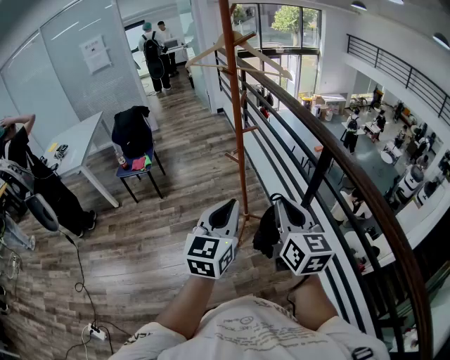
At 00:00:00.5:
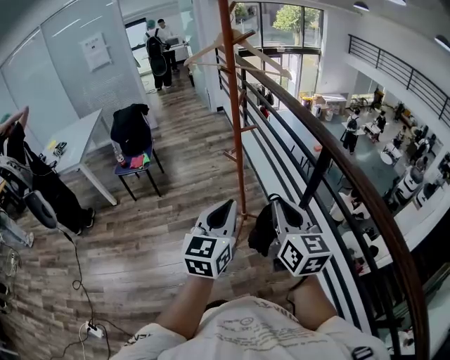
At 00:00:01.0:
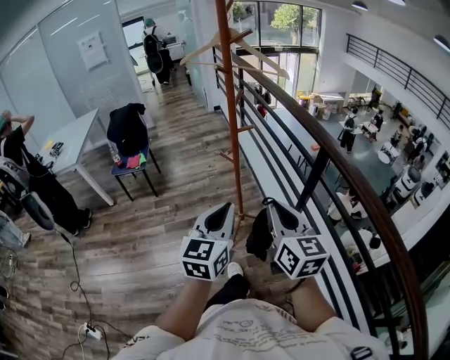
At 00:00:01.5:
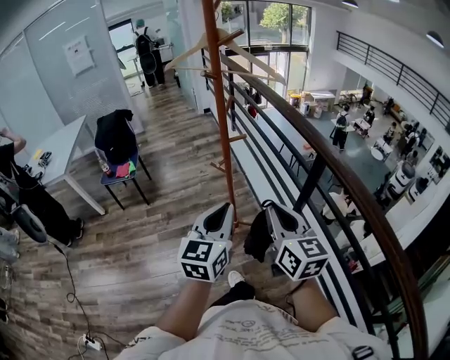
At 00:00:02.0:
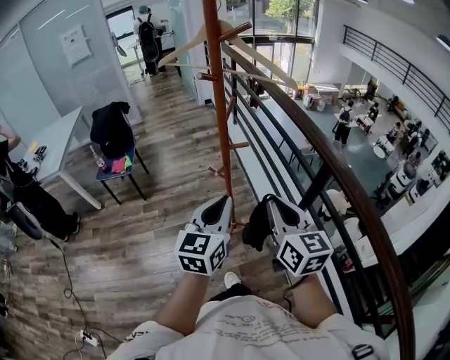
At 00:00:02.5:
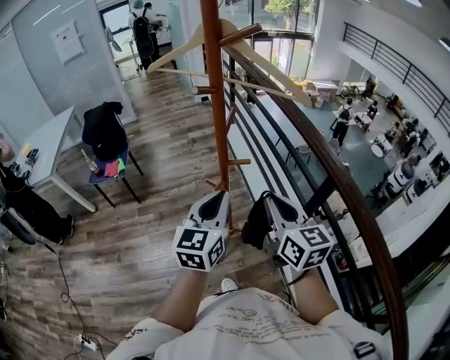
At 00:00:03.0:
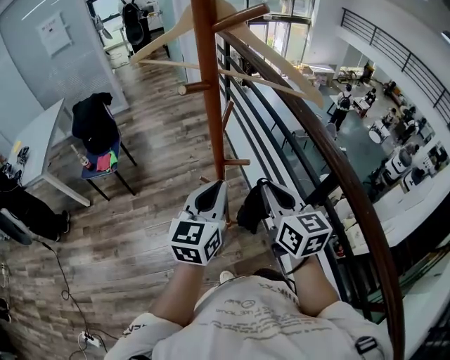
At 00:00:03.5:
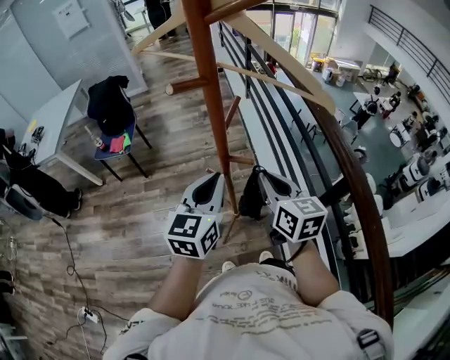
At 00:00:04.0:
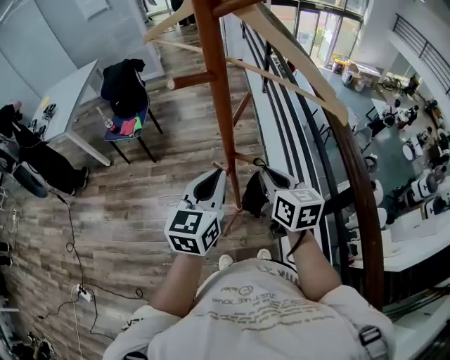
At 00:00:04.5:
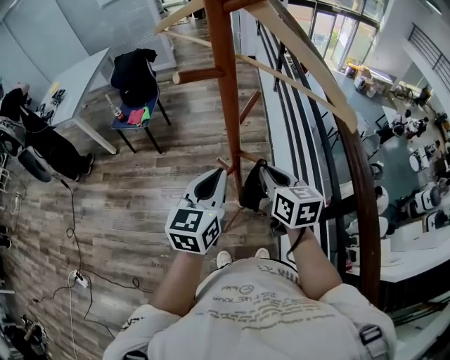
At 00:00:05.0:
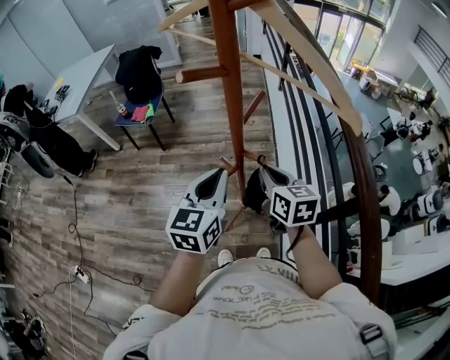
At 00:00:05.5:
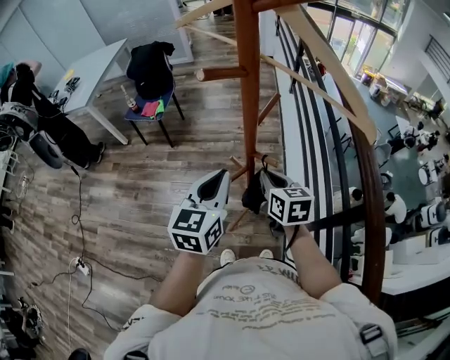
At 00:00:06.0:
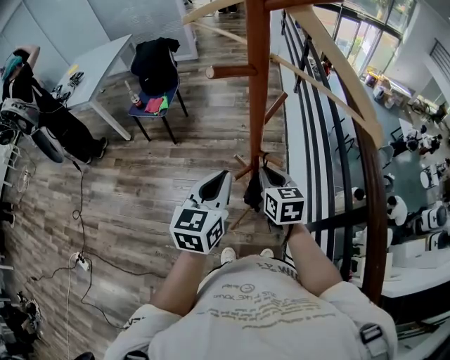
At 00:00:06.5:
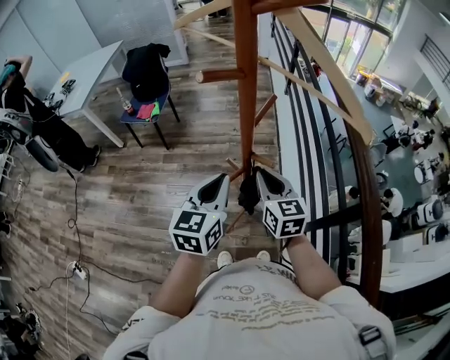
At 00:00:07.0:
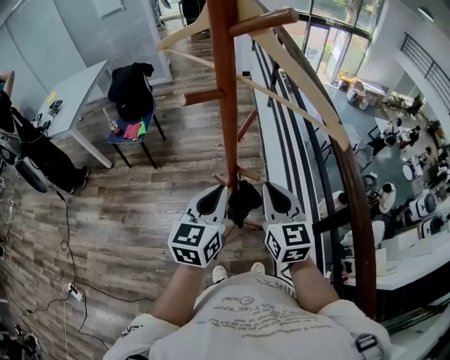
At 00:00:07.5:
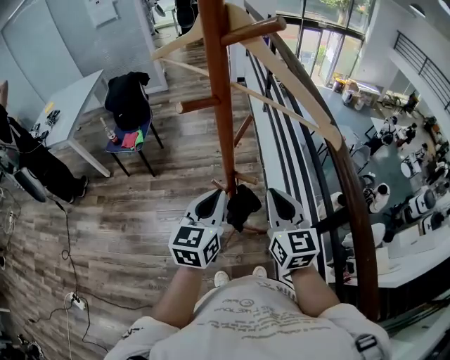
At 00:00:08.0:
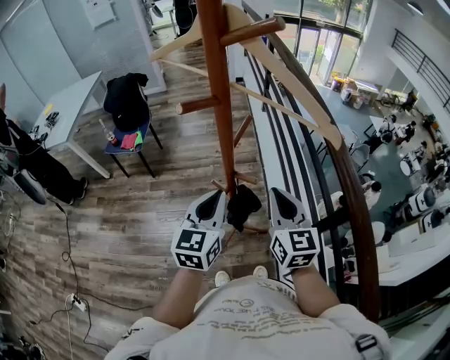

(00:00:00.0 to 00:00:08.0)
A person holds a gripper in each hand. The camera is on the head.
00:00:00.0 - 00:00:02.0: Both grippers move forward, roughly 20 cm.
00:00:02.0 - 00:00:04.0: The grippers both shift forward by approximately 20 cm. The right gripper swivels some 20 degrees.
00:00:04.0 - 00:00:06.0: The right gripper moves downward and to the left, some 10 cm.
00:00:06.0 - 00:00:08.0: The right gripper travels upward and to the right by some 15 cm, and changes its angle by about 20 degrees.

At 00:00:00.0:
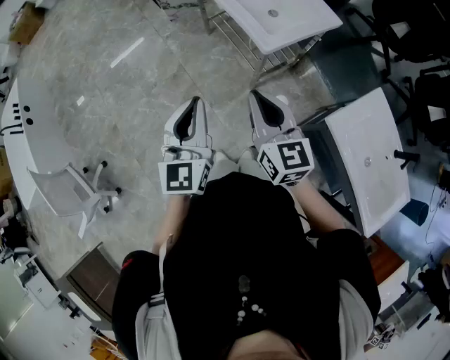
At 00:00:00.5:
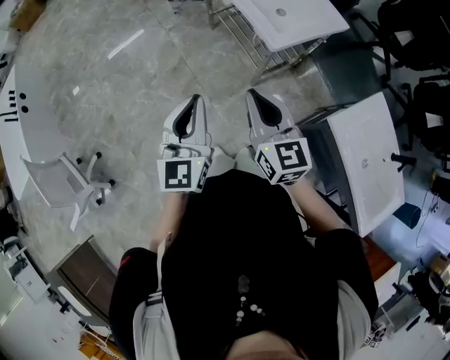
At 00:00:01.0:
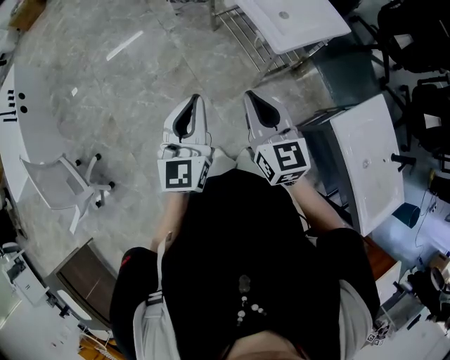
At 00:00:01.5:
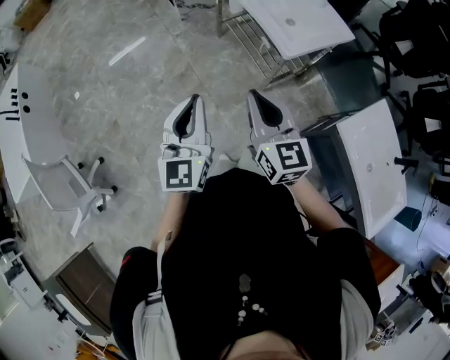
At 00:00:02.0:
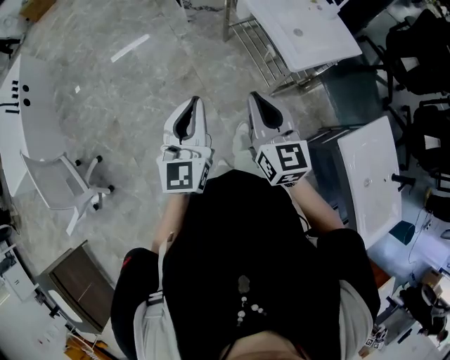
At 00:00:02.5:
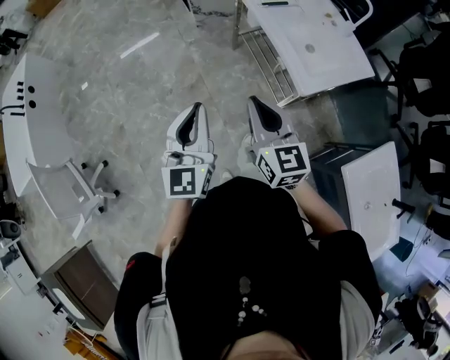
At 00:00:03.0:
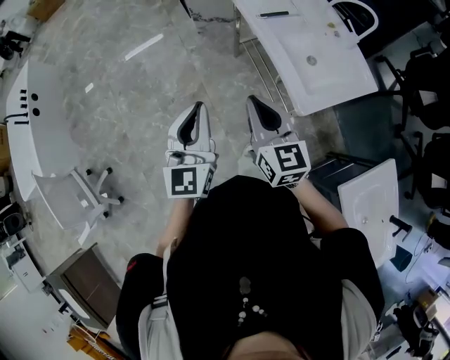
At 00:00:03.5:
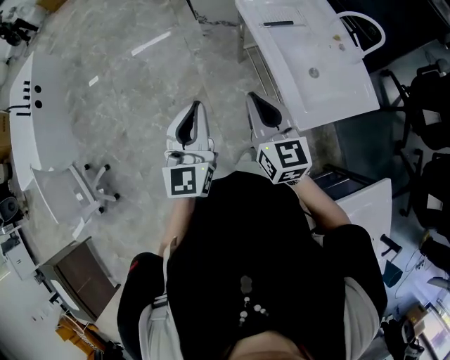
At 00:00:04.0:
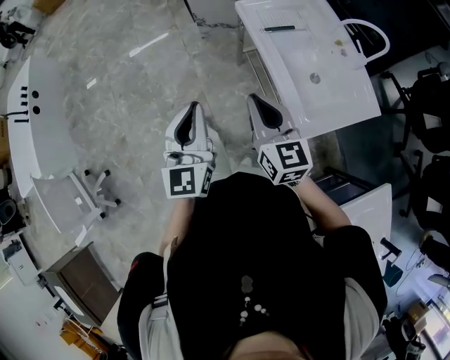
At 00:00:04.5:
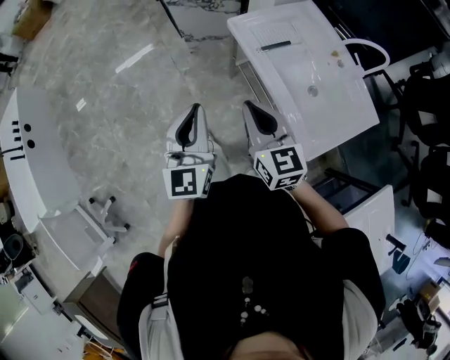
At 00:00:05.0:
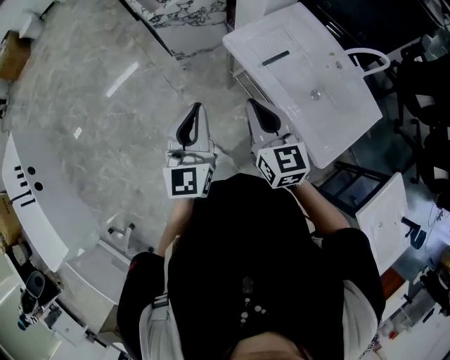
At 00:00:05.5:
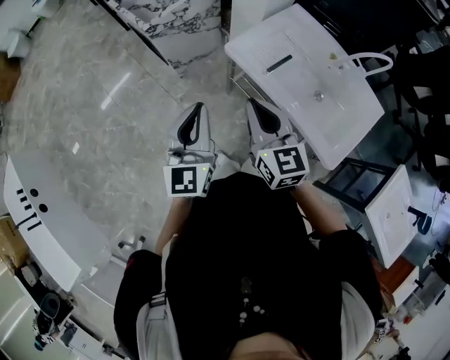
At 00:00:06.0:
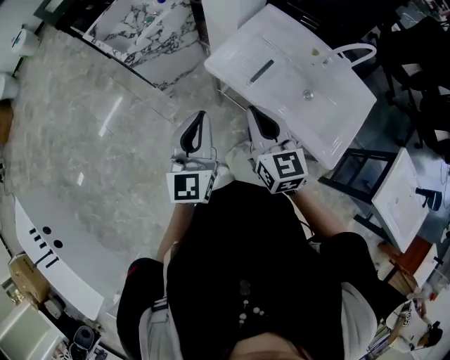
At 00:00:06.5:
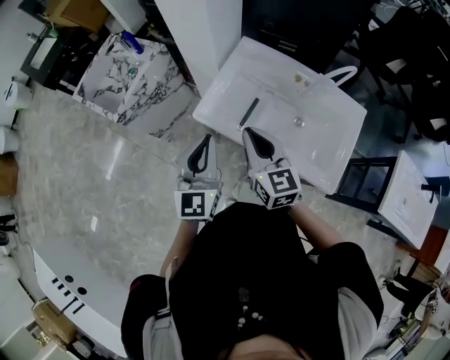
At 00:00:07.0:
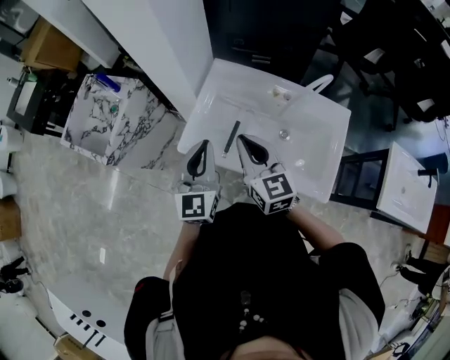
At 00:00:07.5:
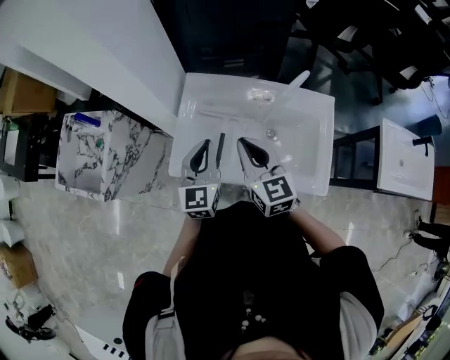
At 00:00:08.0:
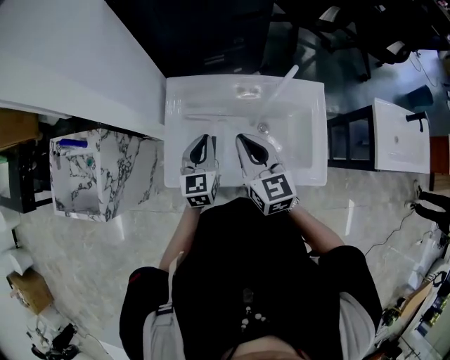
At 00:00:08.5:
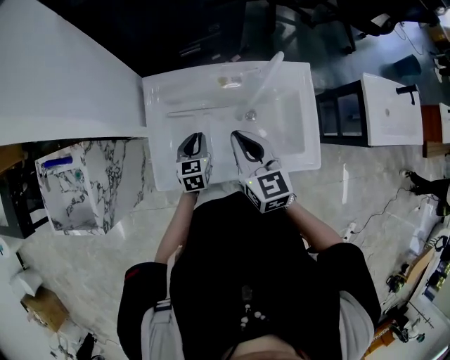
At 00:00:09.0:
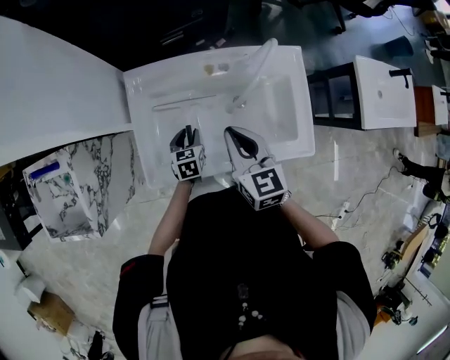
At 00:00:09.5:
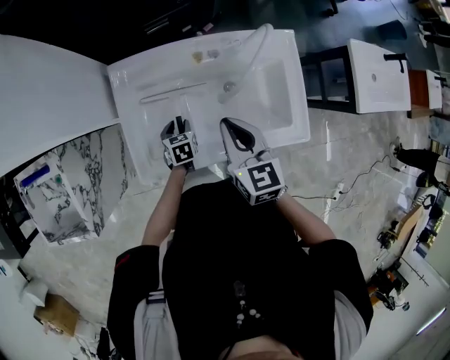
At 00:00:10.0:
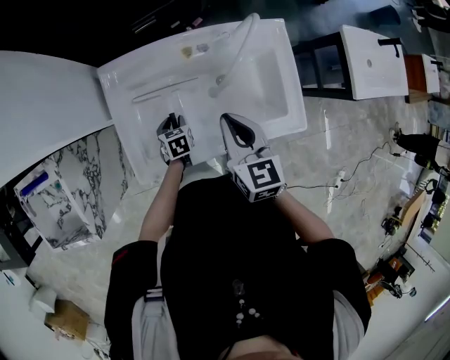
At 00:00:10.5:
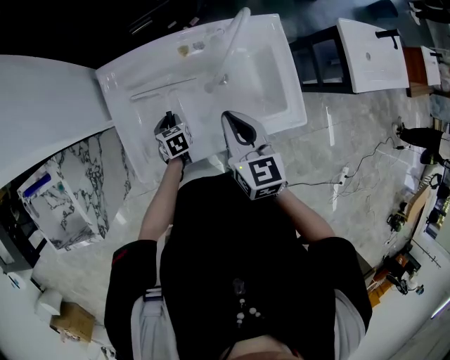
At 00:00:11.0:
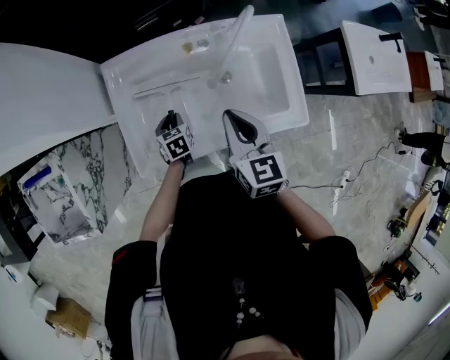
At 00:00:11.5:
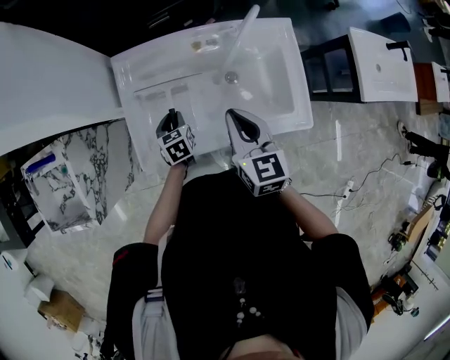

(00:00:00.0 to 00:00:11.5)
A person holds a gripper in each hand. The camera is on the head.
00:00:00.0 - 00:00:02.0: Both grippers travel together to the left, approximately 15 cm.
00:00:02.0 - 00:00:04.0: The two grippers go some 25 cm forward.
00:00:04.0 - 00:00:06.0: The right gripper moves some 25 cm, and rotates roughly 30 degrees. Meanwhile the left gripper changes place by roughly 30 cm, and swivels approximately 30 degrees.
00:00:06.0 - 00:00:07.5: The right gripper changes place by approximately 25 cm, and changes its angle by about 30 degrees. Meanwhile the left gripper shifts by roughly 30 cm, and turns by approximately 30 degrees.
00:00:07.5 - 00:00:09.5: The left gripper heads downward, covering about 30 cm, tilts its fingers approximately 50 degrees downward, and opens; the right gripper is displaced downward and to the right by approximately 10 cm, and rotates roughly 30 degrees.
00:00:09.5 - 00:00:11.5: The left gripper moves upward, about 5 cm.

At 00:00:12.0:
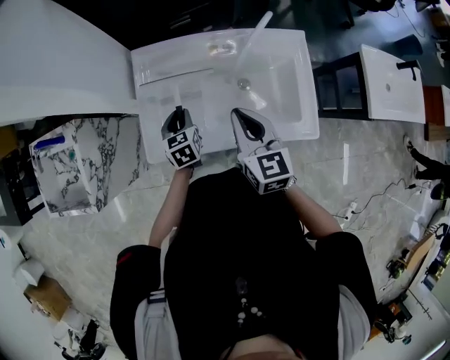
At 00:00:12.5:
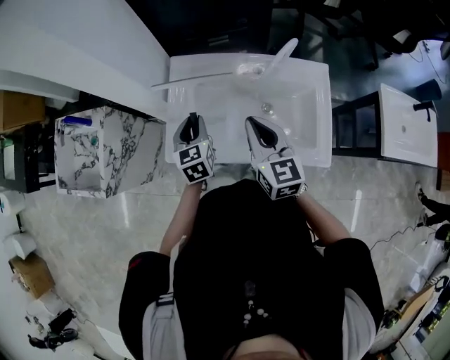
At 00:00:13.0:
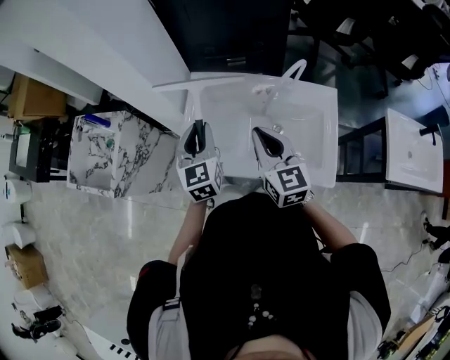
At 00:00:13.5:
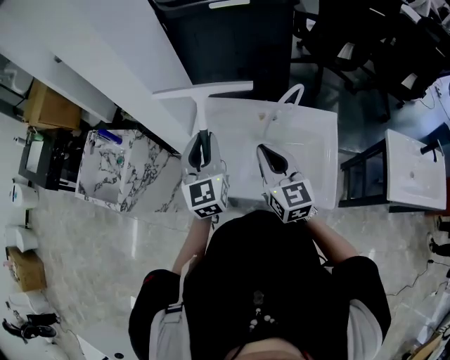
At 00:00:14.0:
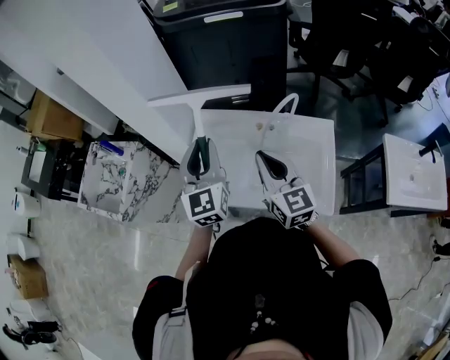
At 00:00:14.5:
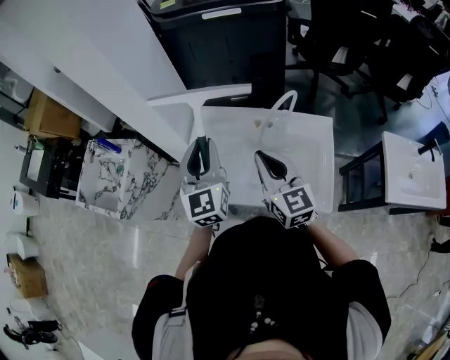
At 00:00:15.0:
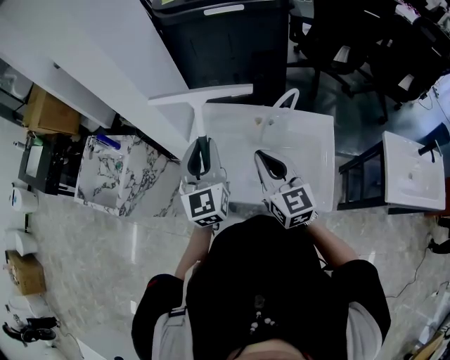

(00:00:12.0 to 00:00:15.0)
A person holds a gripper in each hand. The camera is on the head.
00:00:12.0 - 00:00:13.5: The right gripper is displaced upward by about 10 cm, and changes its angle by roughly 20 degrees, while the left gripper heads upward, covering about 30 cm, and tips its fingers upward by some 40 degrees.
00:00:13.5 - 00:00:15.0: The grippers move only a little.

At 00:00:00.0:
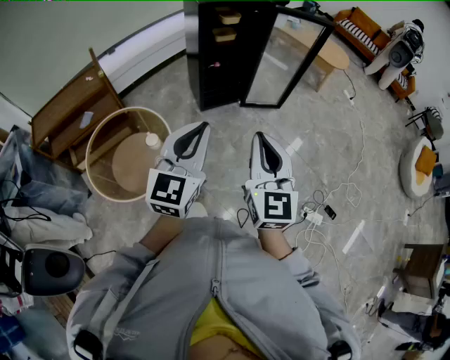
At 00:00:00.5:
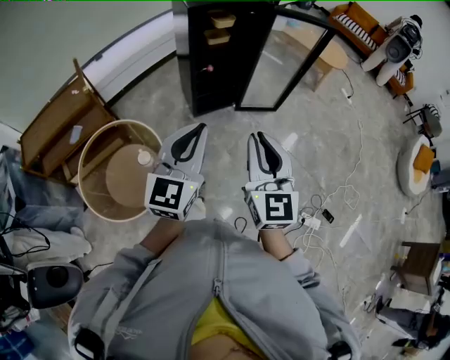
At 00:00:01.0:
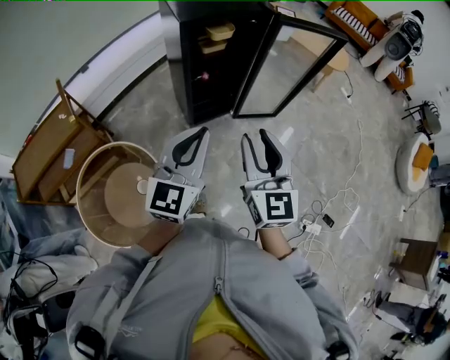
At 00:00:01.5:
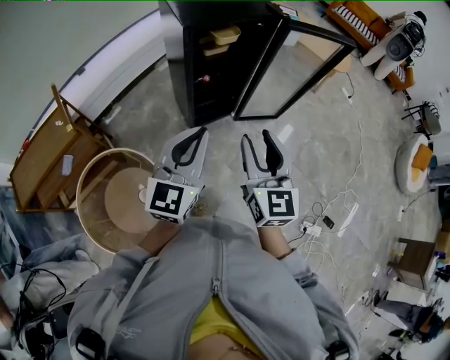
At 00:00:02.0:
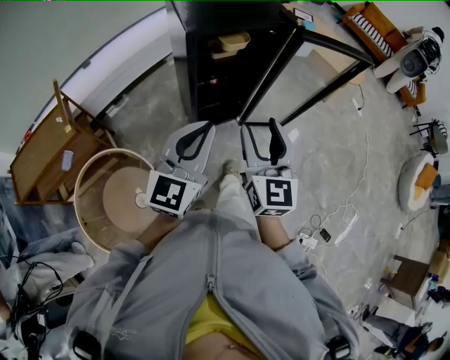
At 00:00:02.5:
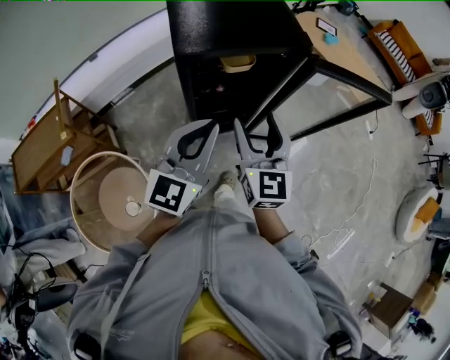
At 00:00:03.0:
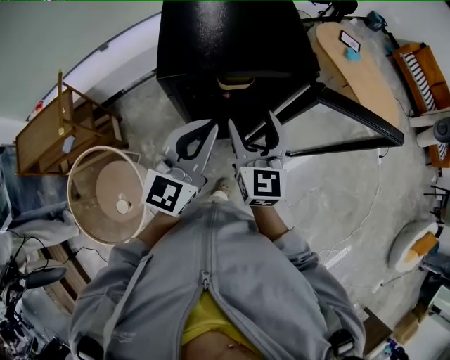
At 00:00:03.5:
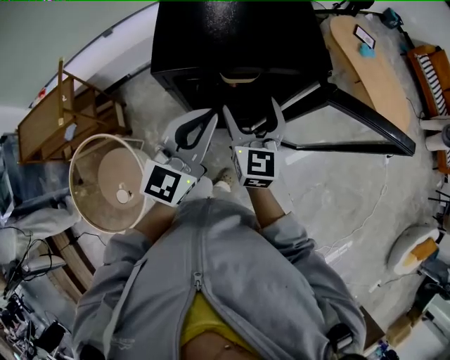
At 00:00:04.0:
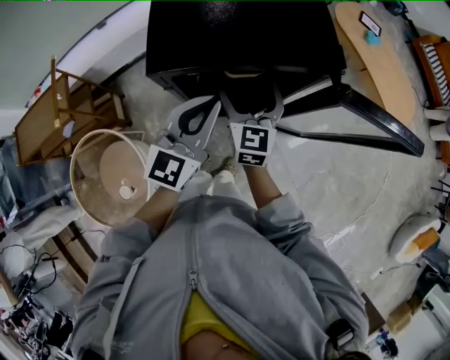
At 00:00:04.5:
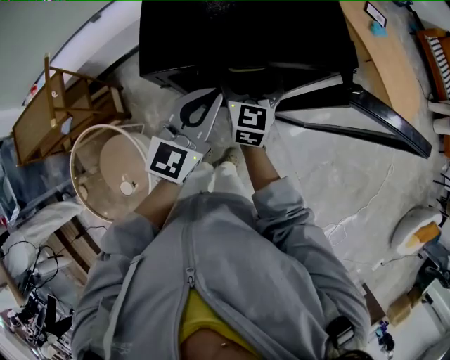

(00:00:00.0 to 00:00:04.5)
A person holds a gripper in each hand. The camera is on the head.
00:00:00.0 - 00:00:02.0: The pair of grippers is taken forward, some 40 cm. The right gripper opens.
00:00:02.0 - 00:00:04.5: The left gripper moves forward, about 30 cm. The right gripper travels forward and downward by about 40 cm, and opens its fingers.
